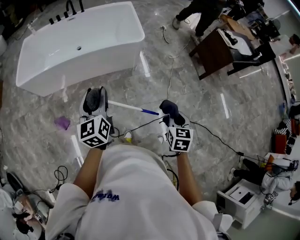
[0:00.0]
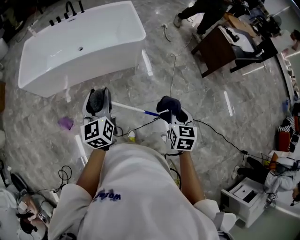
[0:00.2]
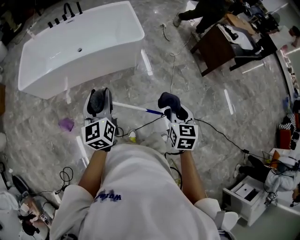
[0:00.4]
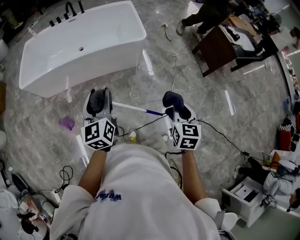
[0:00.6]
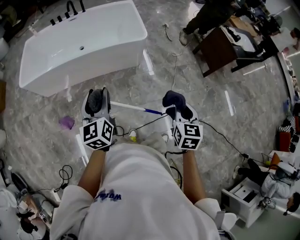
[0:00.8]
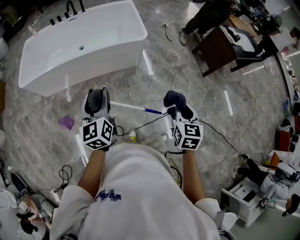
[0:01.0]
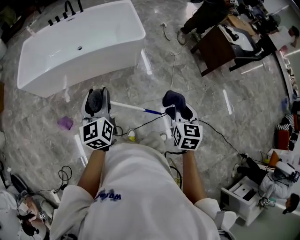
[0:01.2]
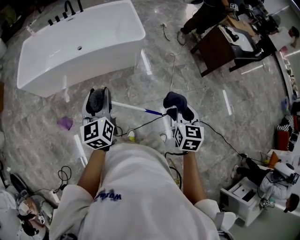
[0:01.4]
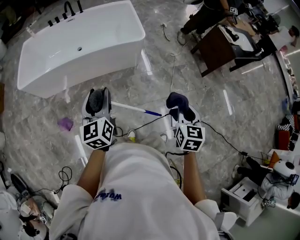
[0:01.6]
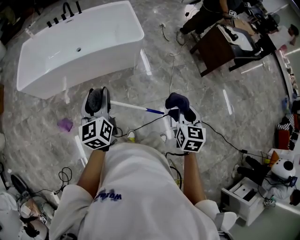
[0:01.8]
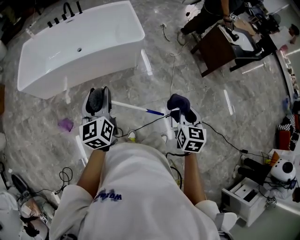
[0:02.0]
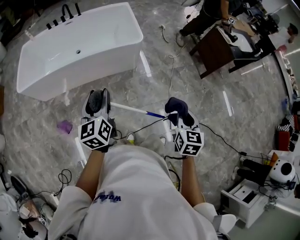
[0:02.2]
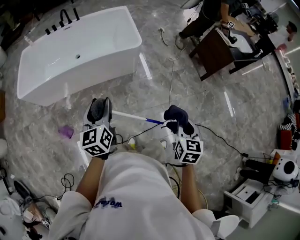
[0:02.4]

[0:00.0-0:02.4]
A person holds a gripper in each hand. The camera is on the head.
0:00.0 to 0:01.2: The right gripper is displaced upward by about 5 cm.
0:01.2 to 0:02.4: The right gripper heads to the right, covering roughly 5 cm.

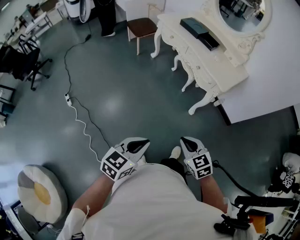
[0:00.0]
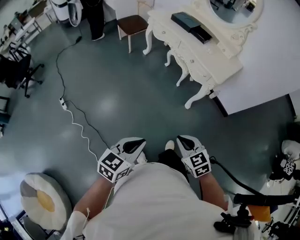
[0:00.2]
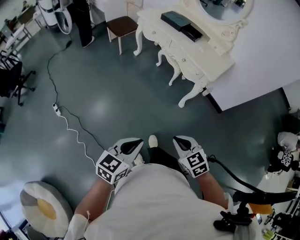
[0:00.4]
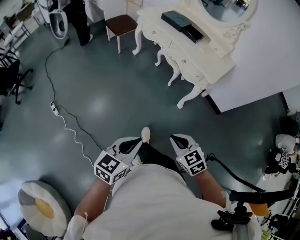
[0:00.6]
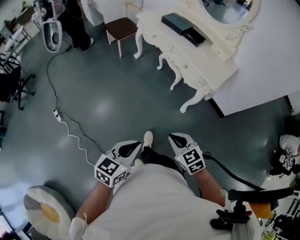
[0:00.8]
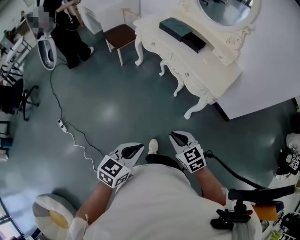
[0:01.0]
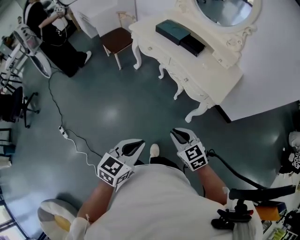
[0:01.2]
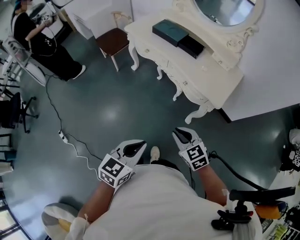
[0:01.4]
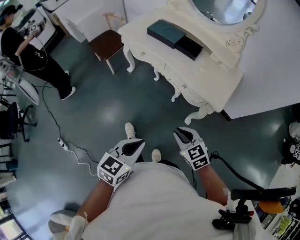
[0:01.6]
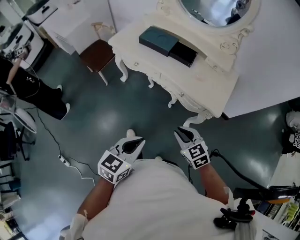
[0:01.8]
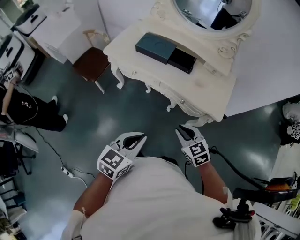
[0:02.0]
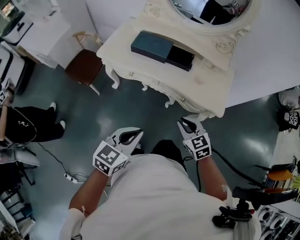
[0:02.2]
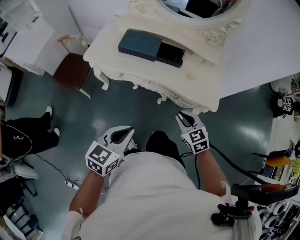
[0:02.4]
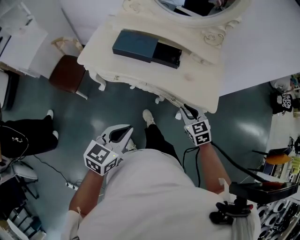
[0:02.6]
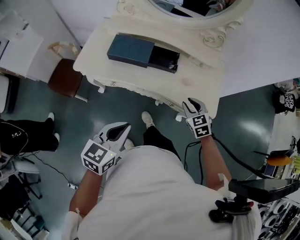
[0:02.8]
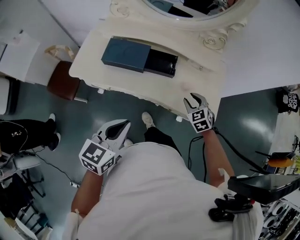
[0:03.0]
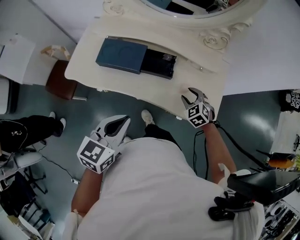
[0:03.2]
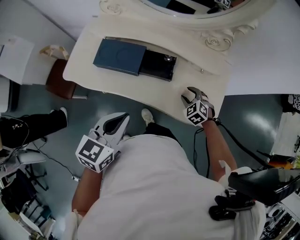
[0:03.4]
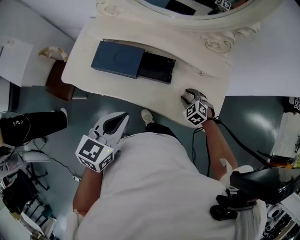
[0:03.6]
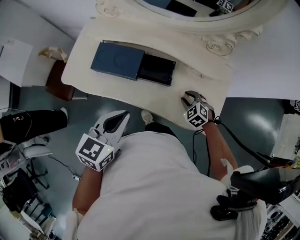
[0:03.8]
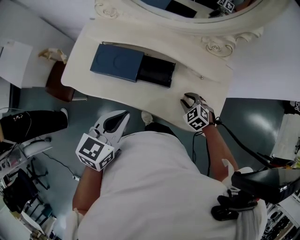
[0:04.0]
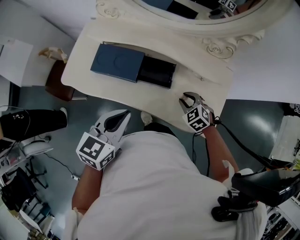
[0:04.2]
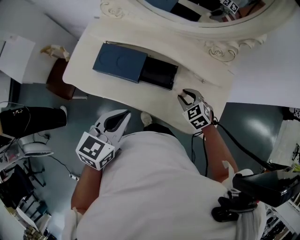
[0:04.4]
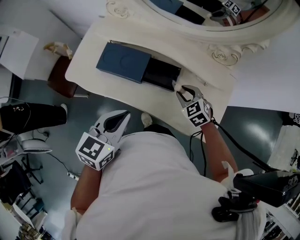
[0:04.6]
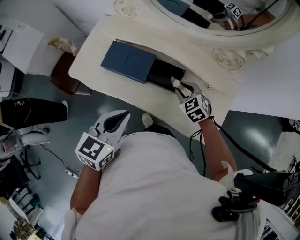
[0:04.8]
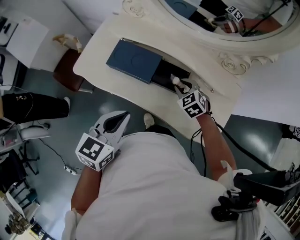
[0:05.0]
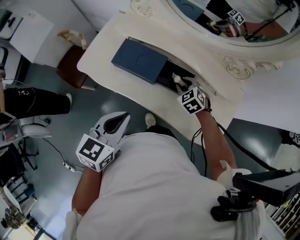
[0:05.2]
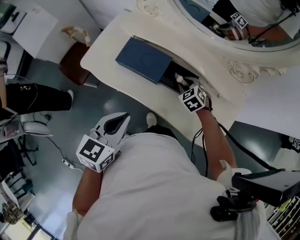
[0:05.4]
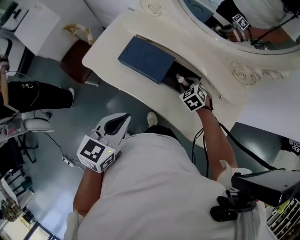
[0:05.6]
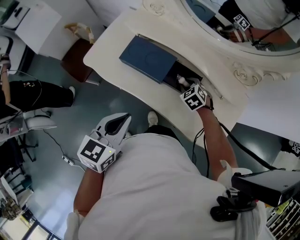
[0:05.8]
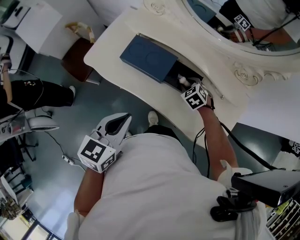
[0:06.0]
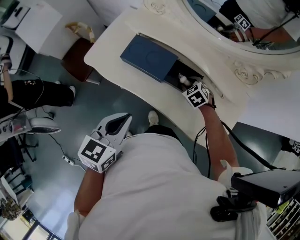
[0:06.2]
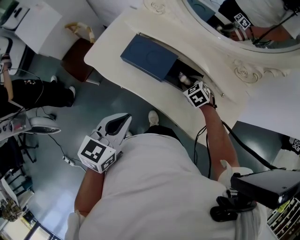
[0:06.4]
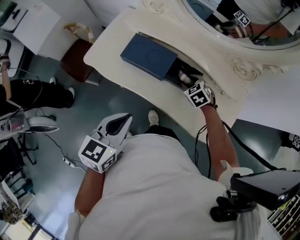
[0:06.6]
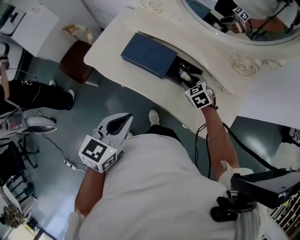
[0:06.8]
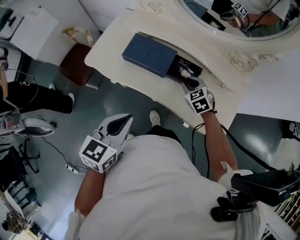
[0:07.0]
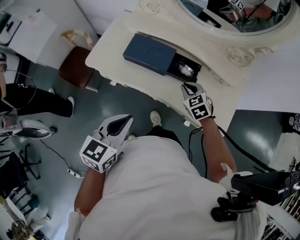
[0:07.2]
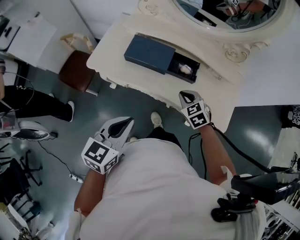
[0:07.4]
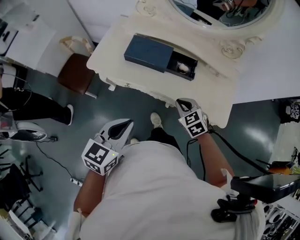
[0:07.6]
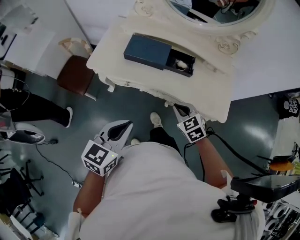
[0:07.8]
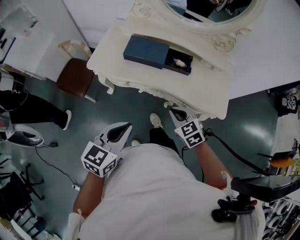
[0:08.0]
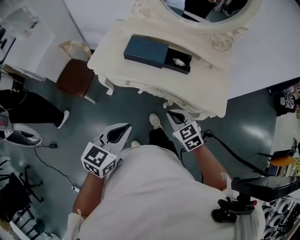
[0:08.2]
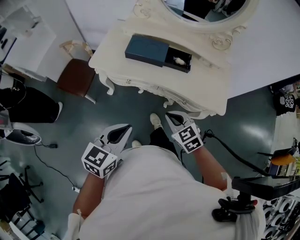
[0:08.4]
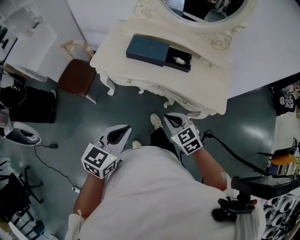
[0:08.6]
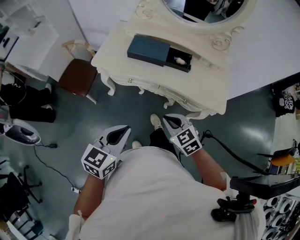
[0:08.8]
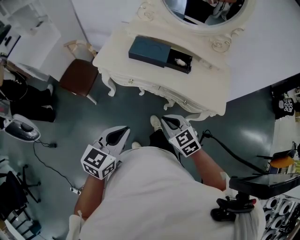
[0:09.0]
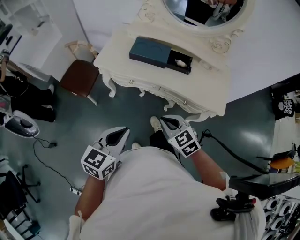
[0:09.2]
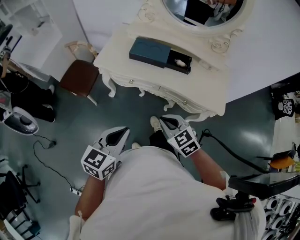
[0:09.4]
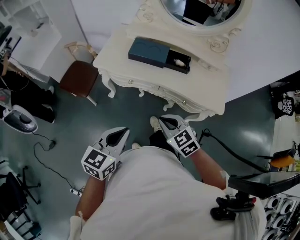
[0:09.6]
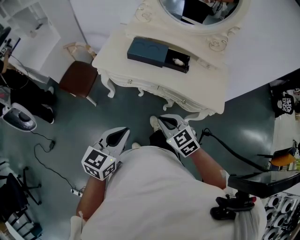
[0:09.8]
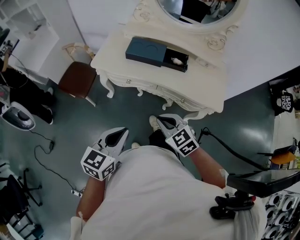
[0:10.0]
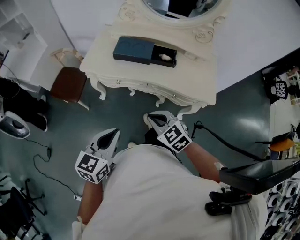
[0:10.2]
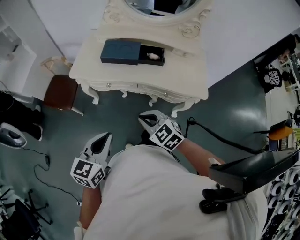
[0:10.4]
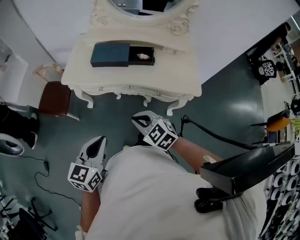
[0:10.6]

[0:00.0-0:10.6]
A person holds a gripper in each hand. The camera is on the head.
0:00.0 to 0:01.6: Both grippers travel together forward, some 40 cm.
0:01.6 to 0:03.0: Both grippers are carried some 40 cm. The right gripper changes its angle by roughly 30 degrees.
0:03.0 to 0:04.6: Both grippers travel together forward, about 15 cm.
0:04.6 to 0:06.0: The right gripper shifts some 10 cm to the left, downward and forward. The left gripper travels to the left by roughly 5 cm.
0:06.0 to 0:07.6: The left gripper heads backward and to the left, covering roughly 15 cm; the right gripper moves backward and upward, about 25 cm, and closes its fingers.
0:07.6 to 0:09.0: The left gripper is displaced backward by approximately 15 cm. Meanwhile the right gripper heads backward and to the left, covering roughly 25 cm.
0:09.0 to 0:10.6: The grippers stay close to where they were, moving slightly.

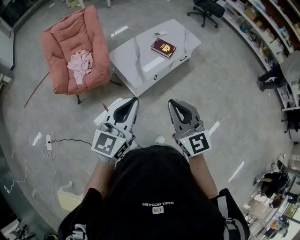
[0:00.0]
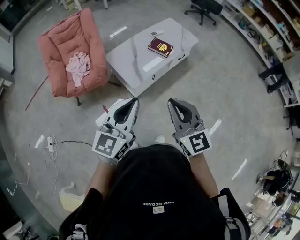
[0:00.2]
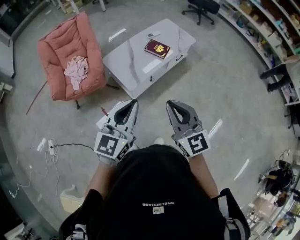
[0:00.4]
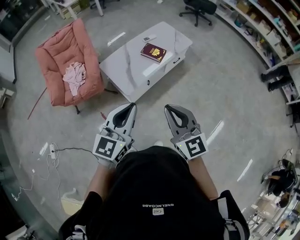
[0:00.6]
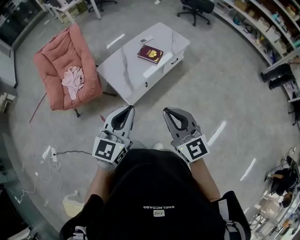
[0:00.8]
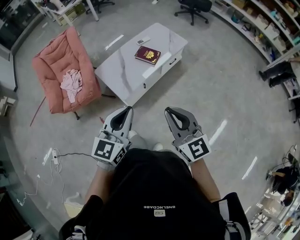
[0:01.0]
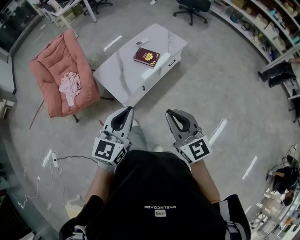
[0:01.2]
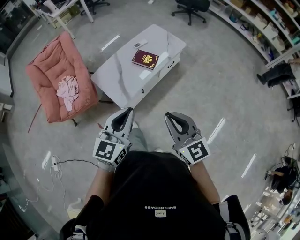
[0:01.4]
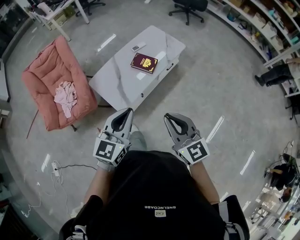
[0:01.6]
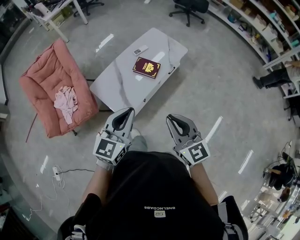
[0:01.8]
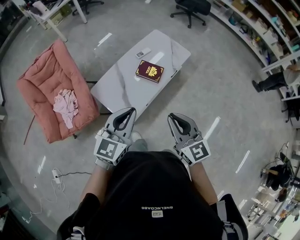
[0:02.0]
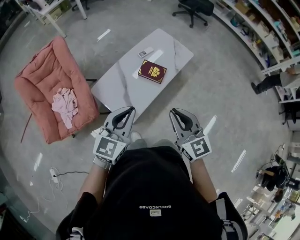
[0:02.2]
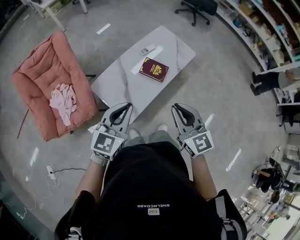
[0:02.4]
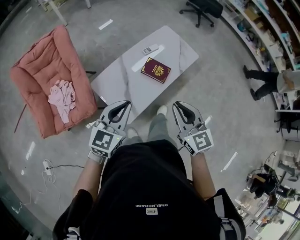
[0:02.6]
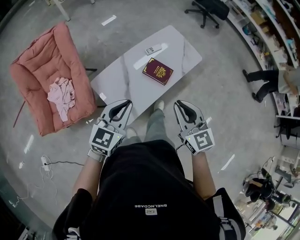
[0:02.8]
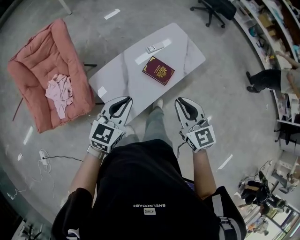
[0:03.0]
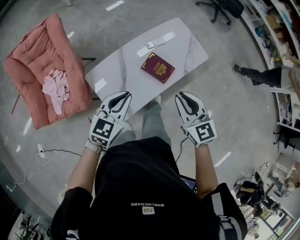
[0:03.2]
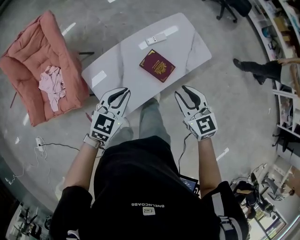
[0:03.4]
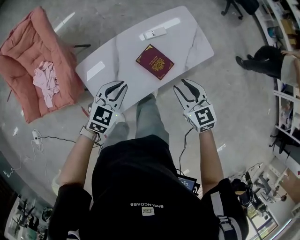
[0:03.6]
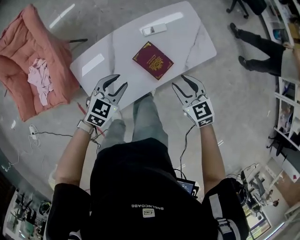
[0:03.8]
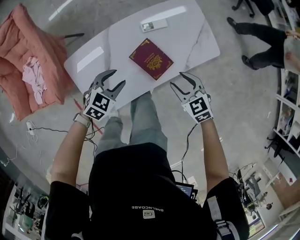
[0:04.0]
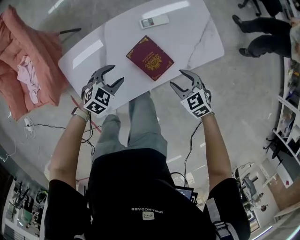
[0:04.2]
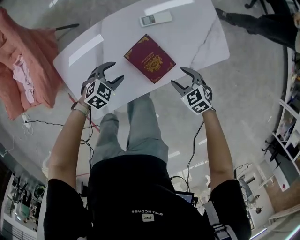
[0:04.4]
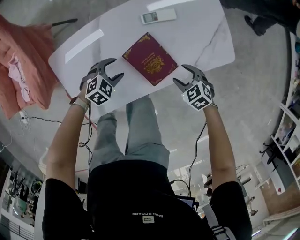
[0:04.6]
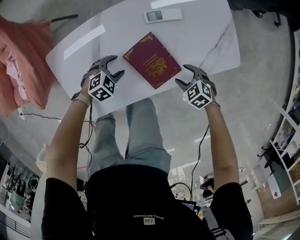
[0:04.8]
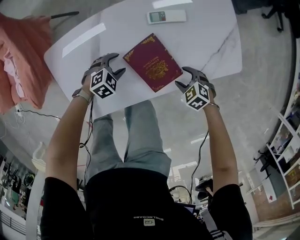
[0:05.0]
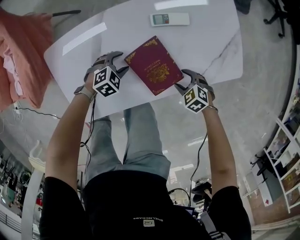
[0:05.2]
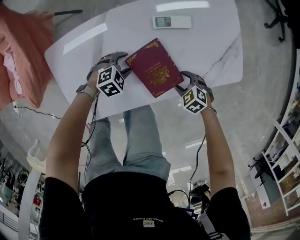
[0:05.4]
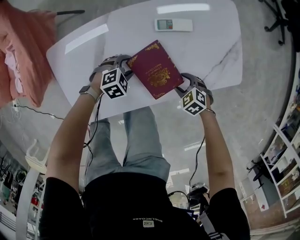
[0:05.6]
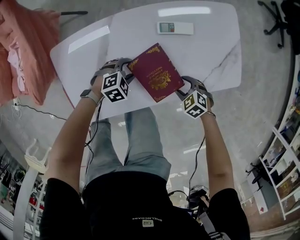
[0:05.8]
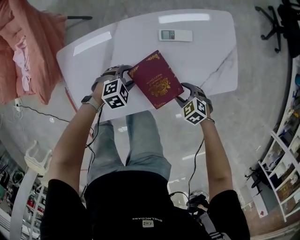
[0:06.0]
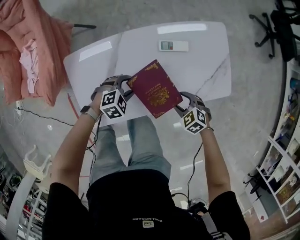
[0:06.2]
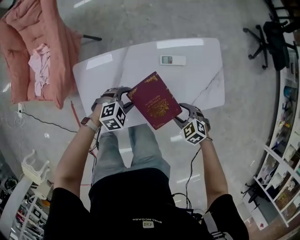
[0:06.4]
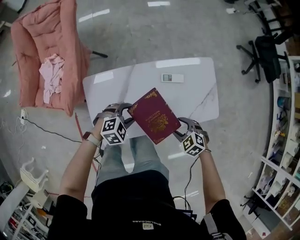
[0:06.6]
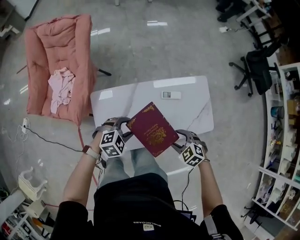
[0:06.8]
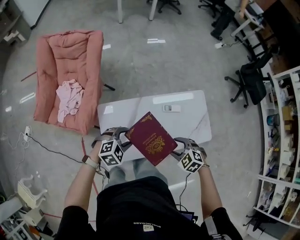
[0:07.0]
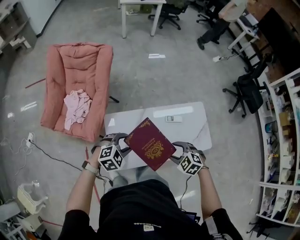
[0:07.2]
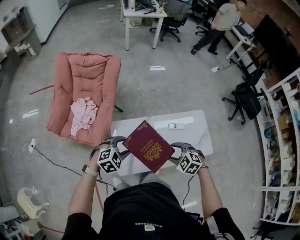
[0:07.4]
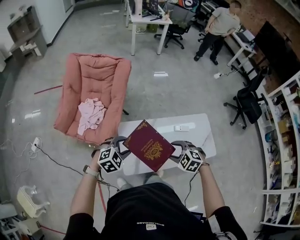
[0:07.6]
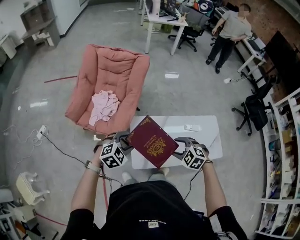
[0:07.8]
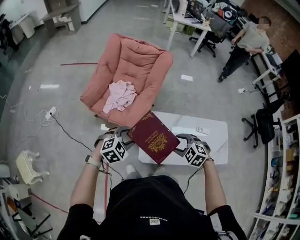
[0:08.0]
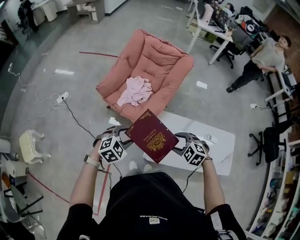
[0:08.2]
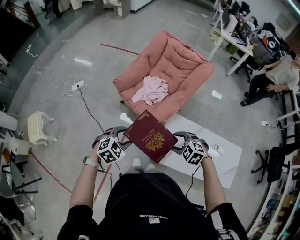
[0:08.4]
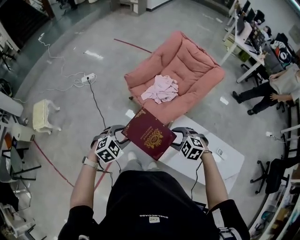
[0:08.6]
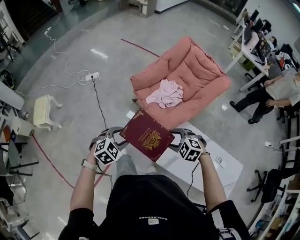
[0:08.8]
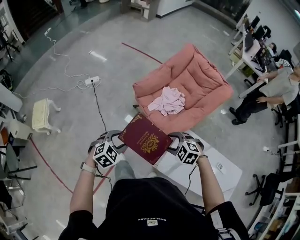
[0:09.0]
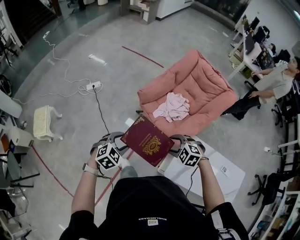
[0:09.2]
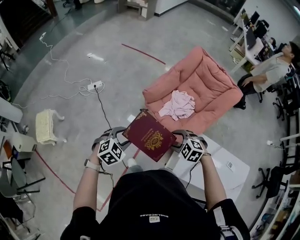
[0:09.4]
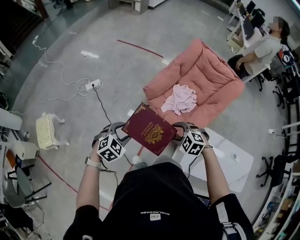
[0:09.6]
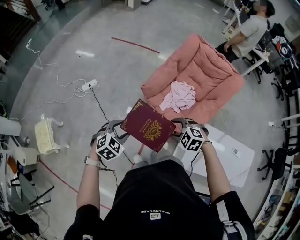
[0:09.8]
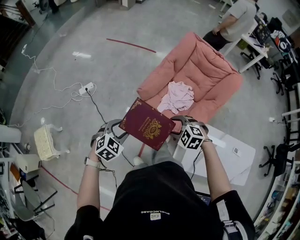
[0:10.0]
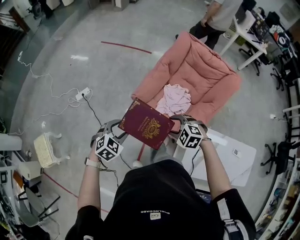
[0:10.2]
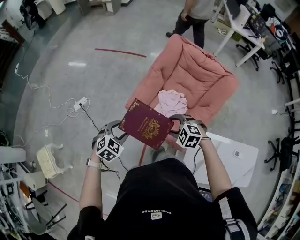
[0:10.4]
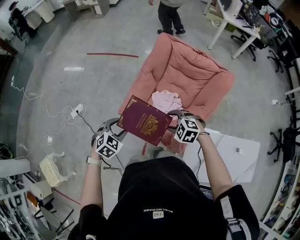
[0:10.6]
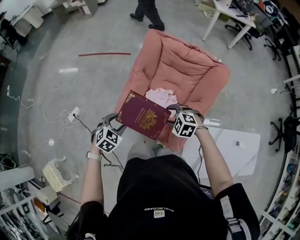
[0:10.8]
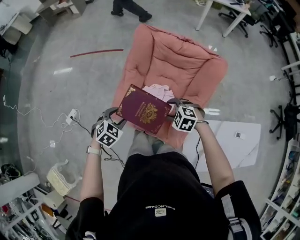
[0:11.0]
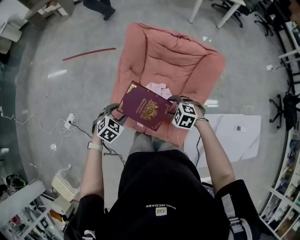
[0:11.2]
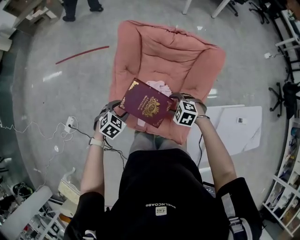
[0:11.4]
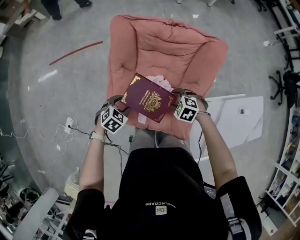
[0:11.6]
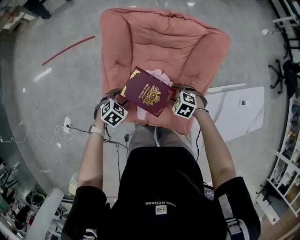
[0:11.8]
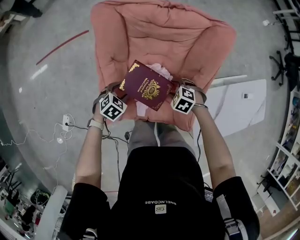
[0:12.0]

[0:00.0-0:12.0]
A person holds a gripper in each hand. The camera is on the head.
0:00.0 to 0:01.6: The grippers both shift forward and to the right by approximately 25 cm.
0:01.6 to 0:03.0: The left gripper heads forward and to the left, covering about 35 cm. Meanwhile the right gripper moves forward, about 35 cm.
0:03.0 to 0:04.4: The two grippers go about 50 cm downward and forward. The left gripper tilts its fingers approximately 40 degrees downward, and opens. The right gripper angles its fingers downward, by some 40 degrees, and opens up.
0:04.4 to 0:06.0: Both grippers move downward, some 10 cm. The right gripper swivels some 20 degrees.
0:06.0 to 0:07.6: The two grippers go about 50 cm upward. The right gripper swivels about 30 degrees. The left gripper changes its angle by about 20 degrees.
0:07.6 to 0:09.0: The two grippers travel together, approximately 40 cm. The left gripper rotates some 50 degrees; the right gripper turns by roughly 50 degrees.
0:09.0 to 0:10.4: The grippers both shift forward by about 35 cm.
0:10.4 to 0:12.0: The left gripper moves about 50 cm, and swivels some 40 degrees; the right gripper changes place by about 40 cm, and twists roughly 40 degrees clockwise, seen from behind.
